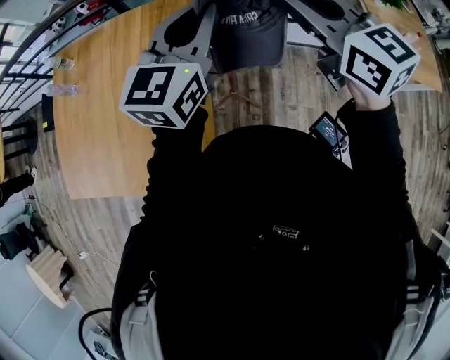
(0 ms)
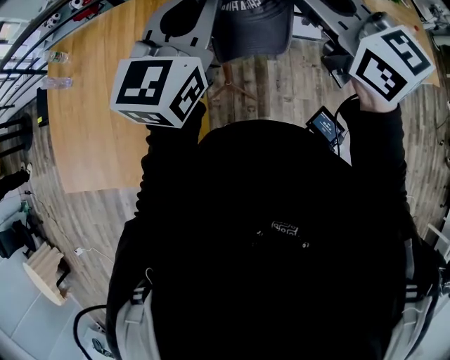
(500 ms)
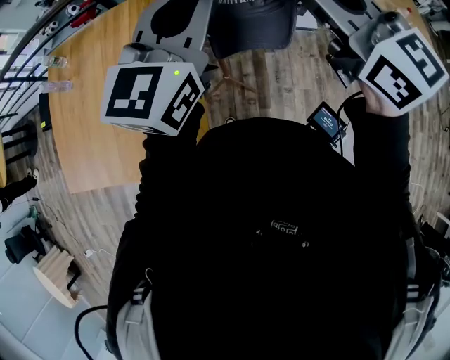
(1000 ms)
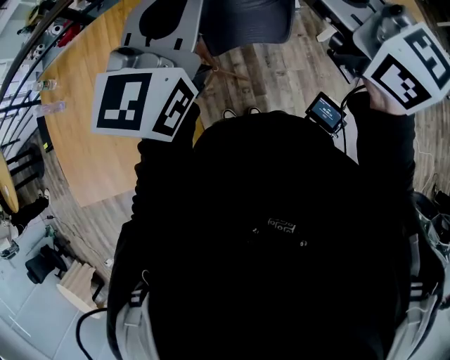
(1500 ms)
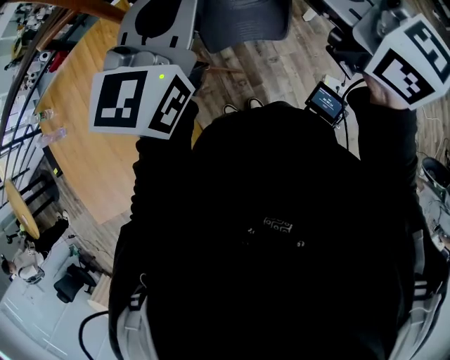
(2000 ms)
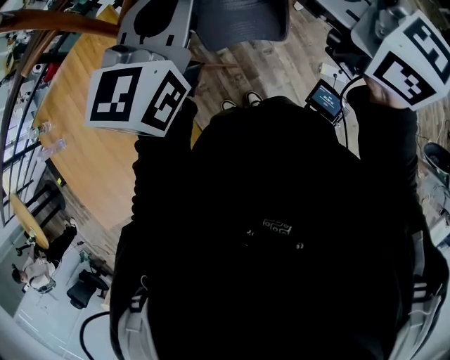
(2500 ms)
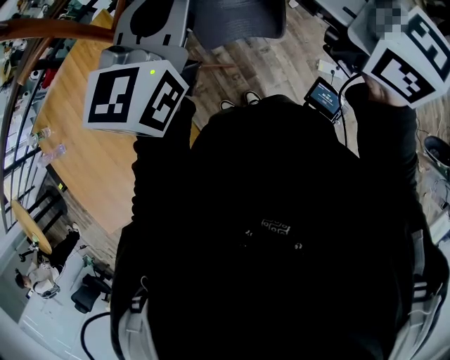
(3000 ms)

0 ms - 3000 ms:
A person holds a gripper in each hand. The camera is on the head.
0 ms - 1500 ms: Both grippers travel together backward, to the right and upward, roughly 15 cm.
1500 ms - 3000 ms: Both grippers move to the right, roughly 10 cm.

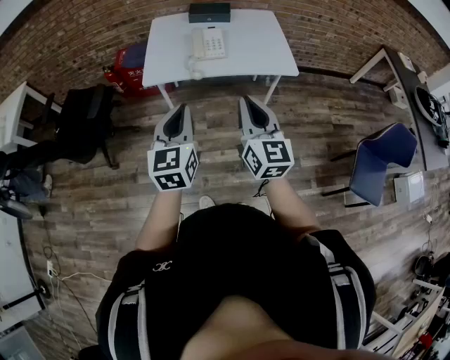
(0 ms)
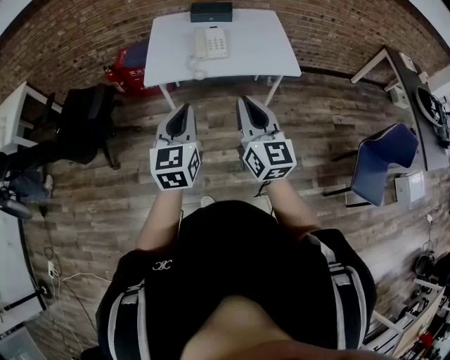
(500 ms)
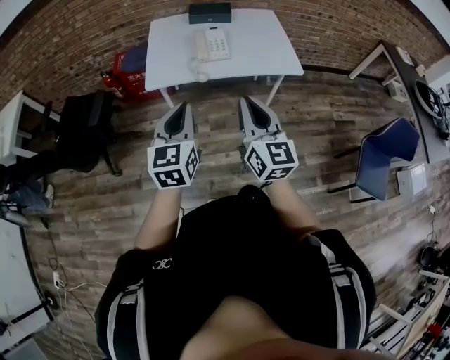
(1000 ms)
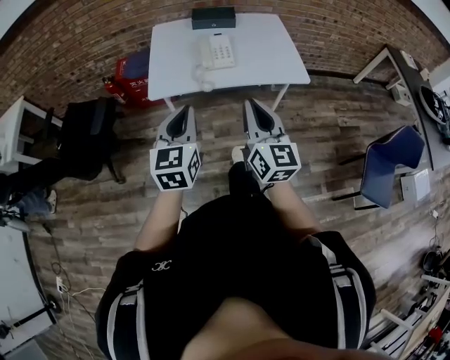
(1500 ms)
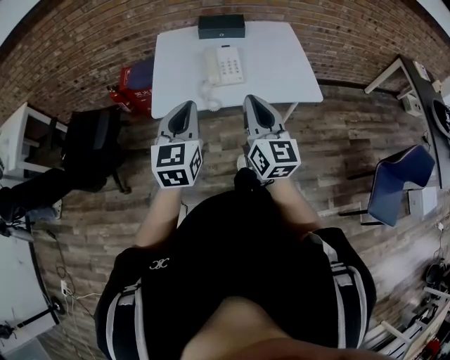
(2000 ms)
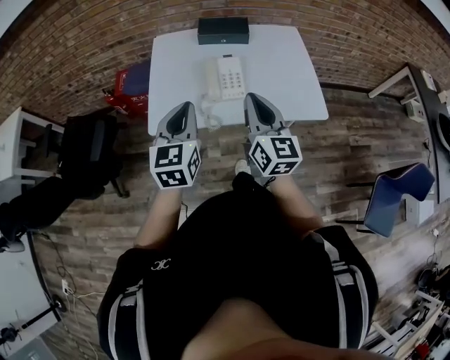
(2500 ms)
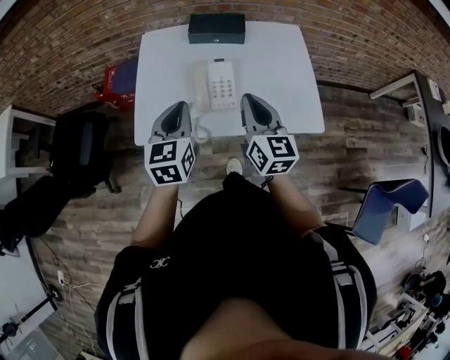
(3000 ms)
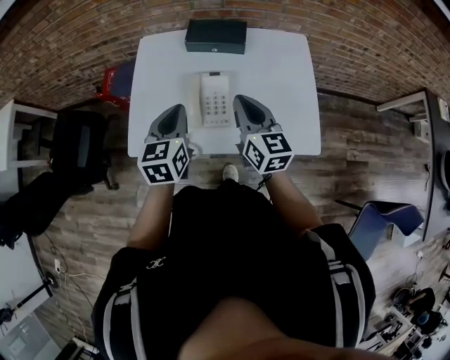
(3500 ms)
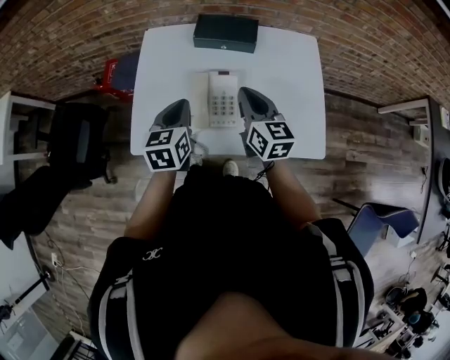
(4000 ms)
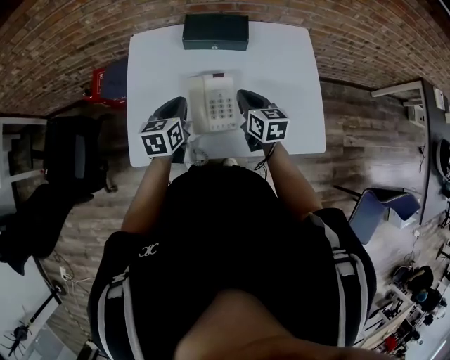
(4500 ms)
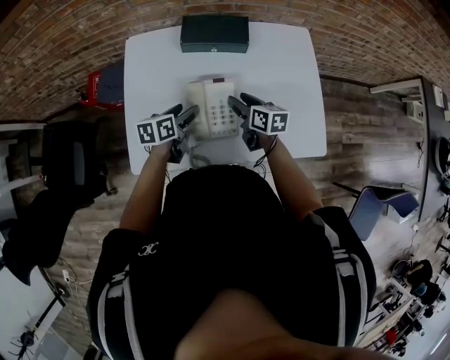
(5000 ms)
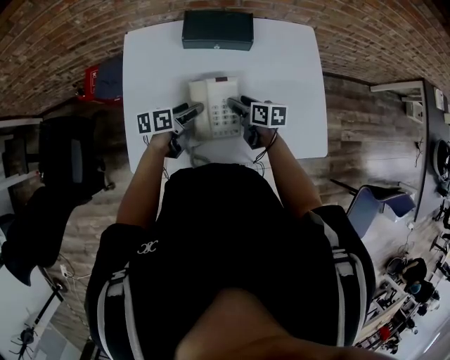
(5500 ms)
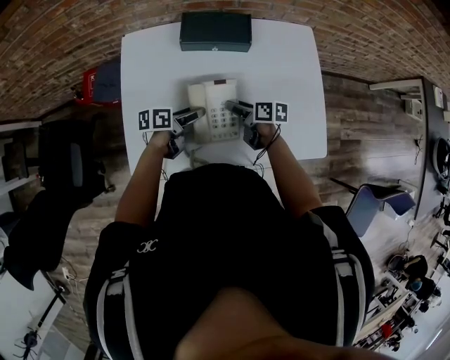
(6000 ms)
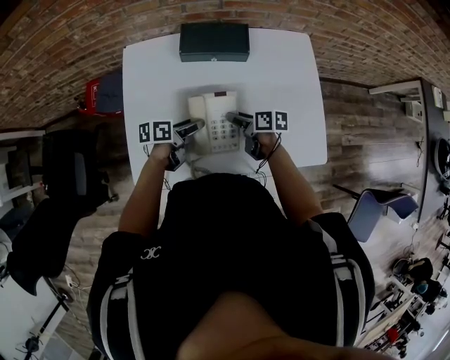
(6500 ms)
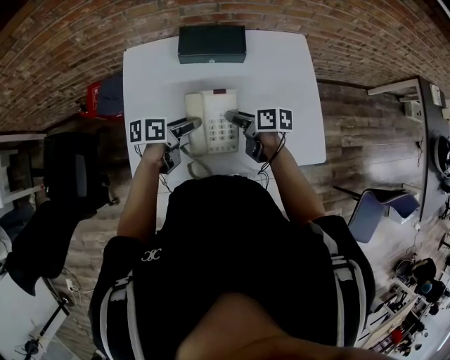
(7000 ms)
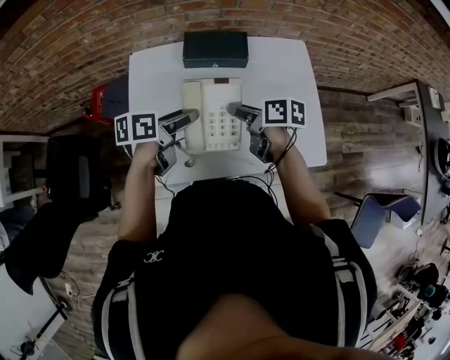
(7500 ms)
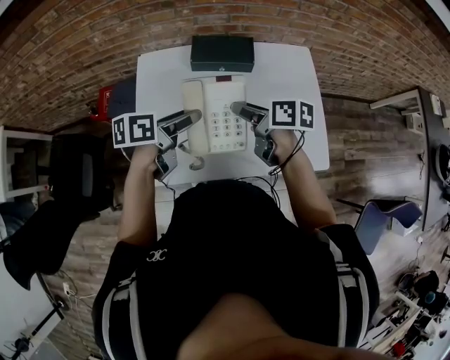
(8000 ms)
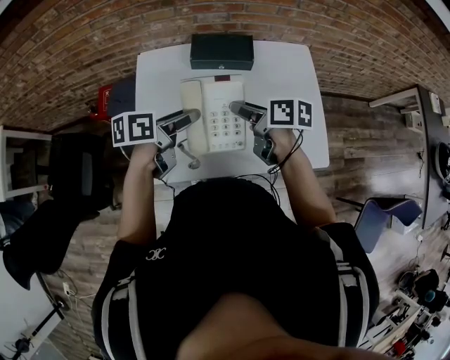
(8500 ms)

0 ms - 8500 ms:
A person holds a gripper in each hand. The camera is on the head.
0 ms - 2000 ms: Both grippers travel together forward, some 20 cm.
2000 ms - 4000 ms: Both grippers travel together forward, approximately 35 cm. The left gripper rotates roughly 20 degrees. Meanwhile the right gripper changes its angle by about 20 degrees.
4000 ms - 6500 ms: The grippers both shift downward by roughly 20 cm. The right gripper turns by some 50 degrees, and opens, while the left gripper rotates some 60 degrees, and opens.
6500 ms - 8500 ms: Both grippers move upward, roughly 20 cm.

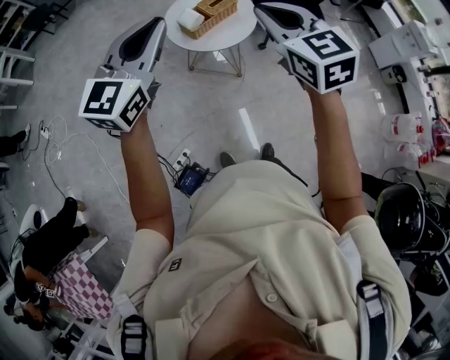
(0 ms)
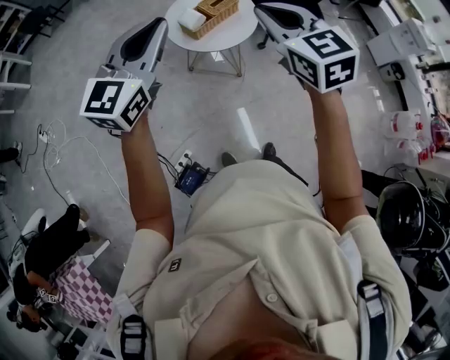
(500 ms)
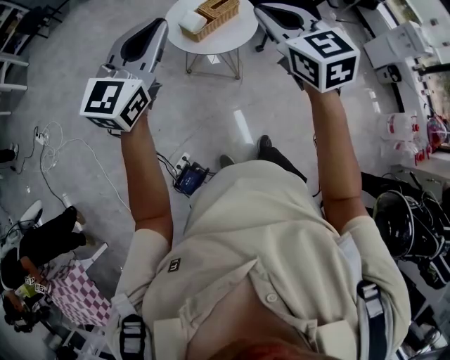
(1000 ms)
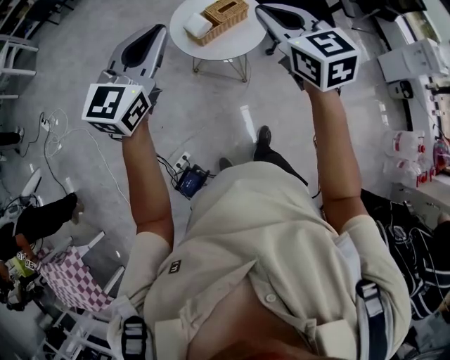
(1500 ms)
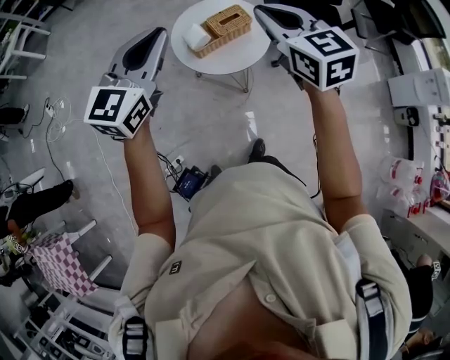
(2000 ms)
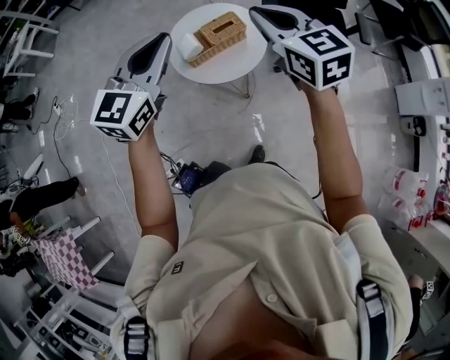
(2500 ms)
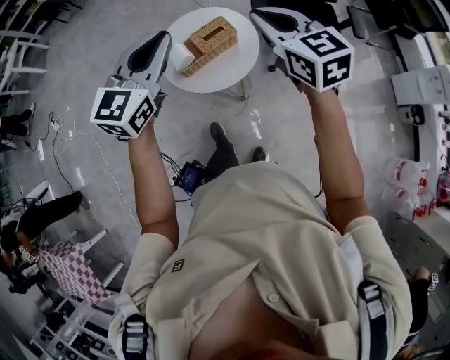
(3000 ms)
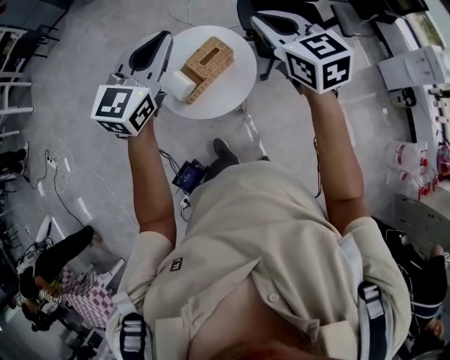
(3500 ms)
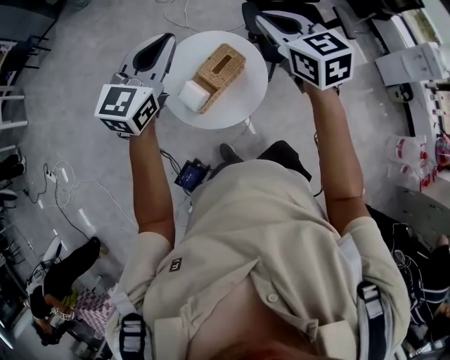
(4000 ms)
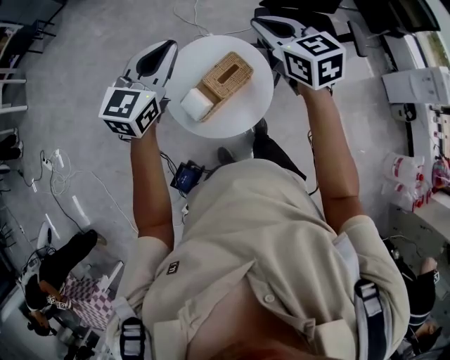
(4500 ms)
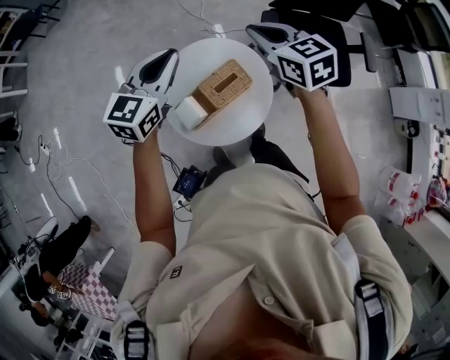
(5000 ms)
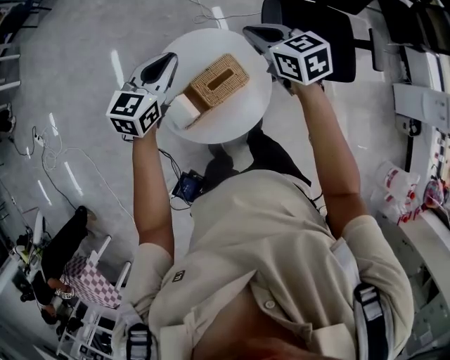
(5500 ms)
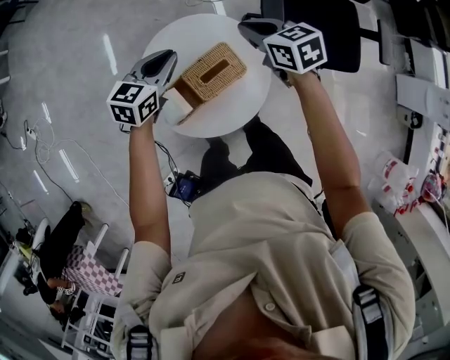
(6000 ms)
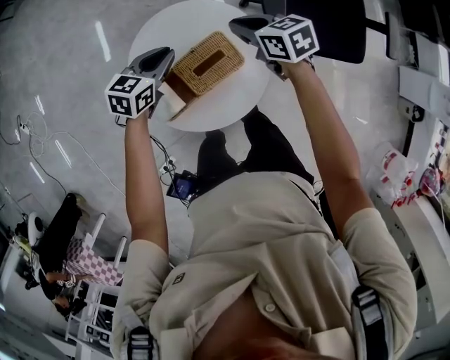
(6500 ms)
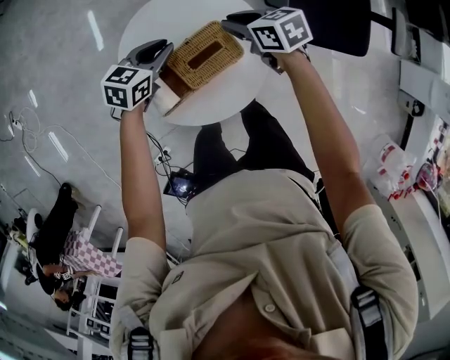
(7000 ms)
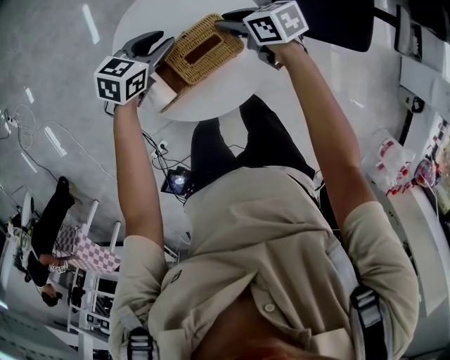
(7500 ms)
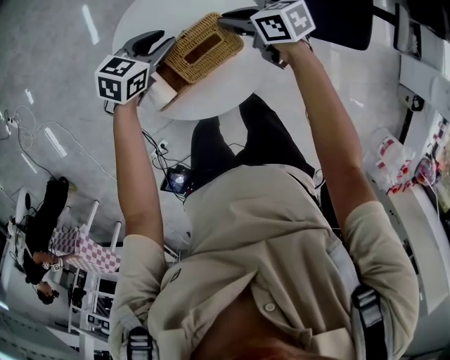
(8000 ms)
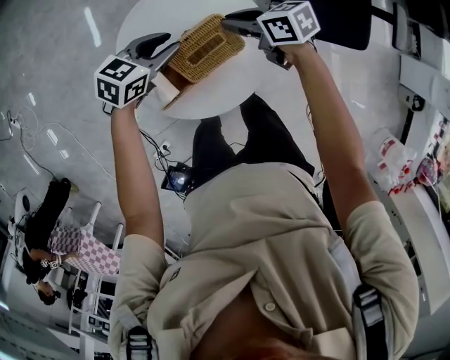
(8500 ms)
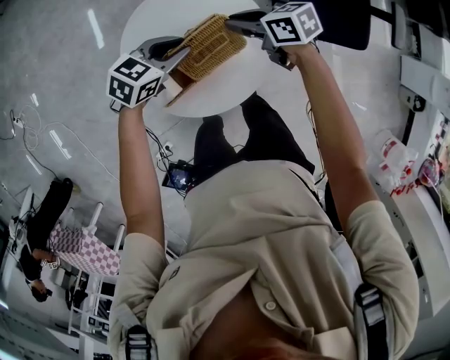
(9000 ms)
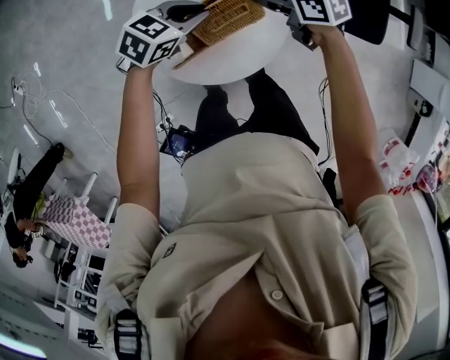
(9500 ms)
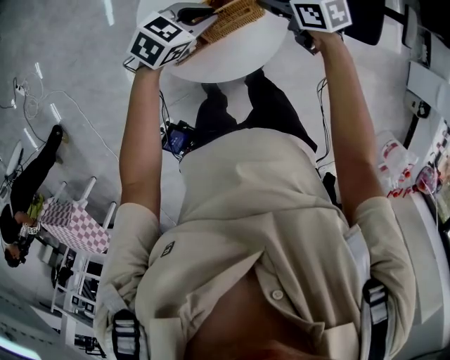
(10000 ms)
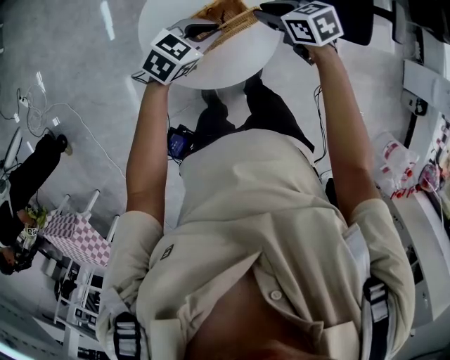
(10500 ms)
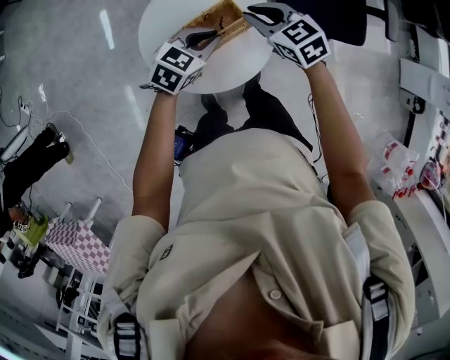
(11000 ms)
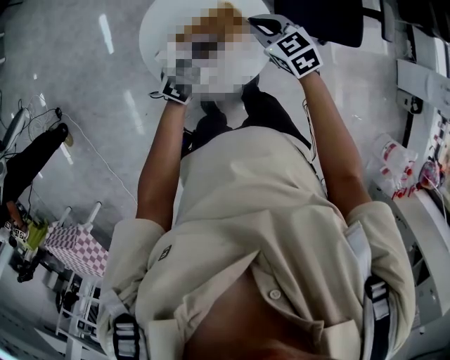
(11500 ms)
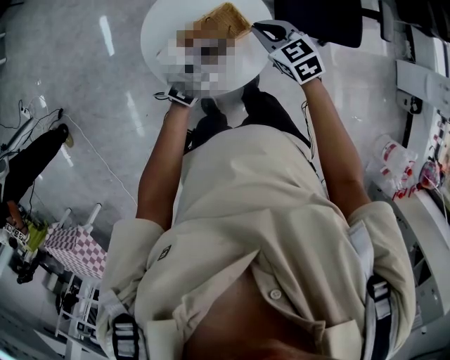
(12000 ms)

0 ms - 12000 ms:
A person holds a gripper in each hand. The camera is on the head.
0 ms - 2000 ms: The grippers both shift forward by some 15 cm.
2000 ms - 4000 ms: The two grippers go about 25 cm forward.
4000 ms - 6000 ms: The grippers both shift downward and forward by approximately 35 cm. The right gripper rotates roughly 30 degrees. The left gripper turns by some 30 degrees.
6000 ms - 8000 ms: The grippers both shift downward by roughly 15 cm. The right gripper rotates roughly 30 degrees, while the left gripper opens up.
8000 ms - 10000 ms: The right gripper heads upward, covering roughly 5 cm. The left gripper shifts by approximately 15 cm.
10000 ms - 12000 ms: The left gripper ends up about 10 cm from where it was, while the right gripper changes place by roughly 10 cm, and turns by some 30 degrees.

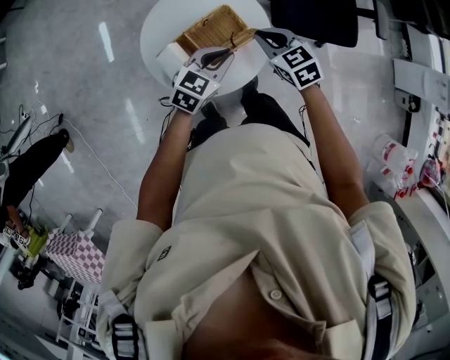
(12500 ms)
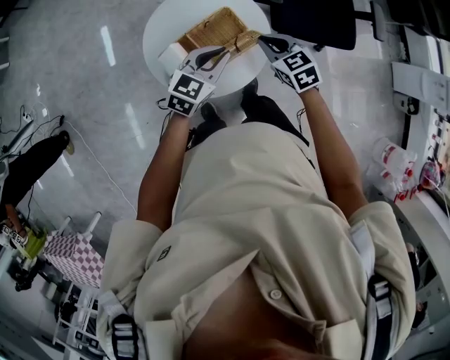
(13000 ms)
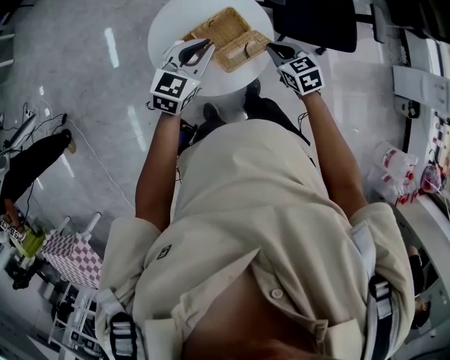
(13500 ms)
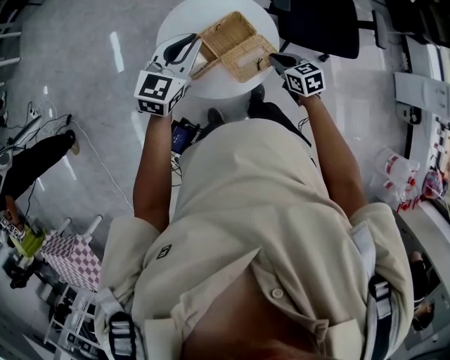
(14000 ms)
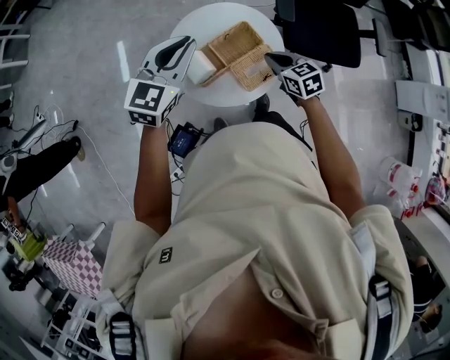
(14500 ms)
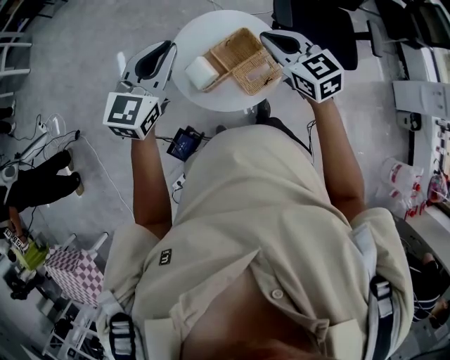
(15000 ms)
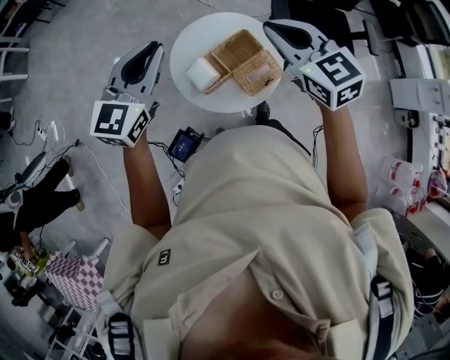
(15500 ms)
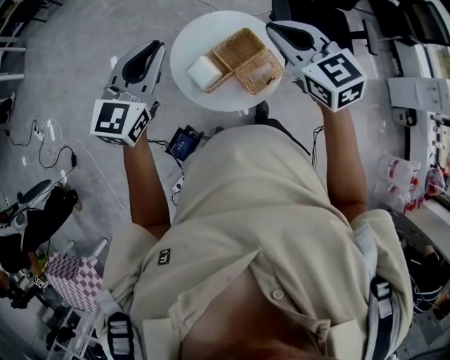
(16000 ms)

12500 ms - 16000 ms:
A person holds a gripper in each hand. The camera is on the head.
12500 ms - 14500 ms: The left gripper heads upward and to the left, covering some 25 cm, and changes its angle by some 20 degrees.
14500 ms - 16000 ms: The right gripper heads upward, covering roughly 25 cm, and changes its angle by some 20 degrees; the left gripper shifts roughly 10 cm upward and to the left.
